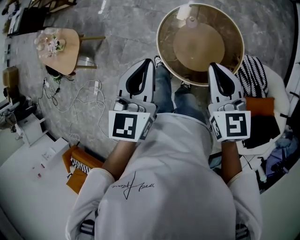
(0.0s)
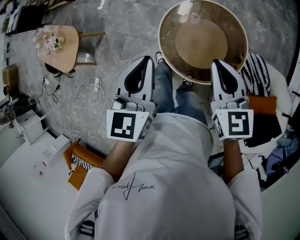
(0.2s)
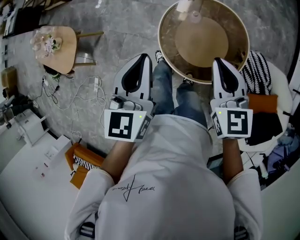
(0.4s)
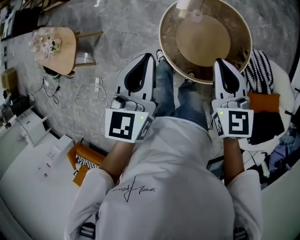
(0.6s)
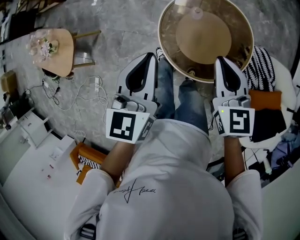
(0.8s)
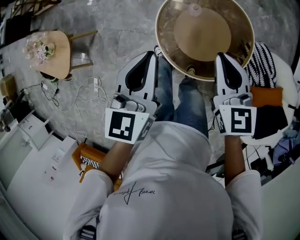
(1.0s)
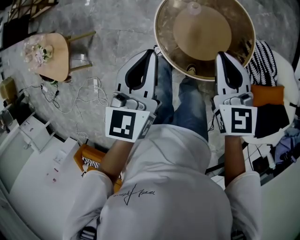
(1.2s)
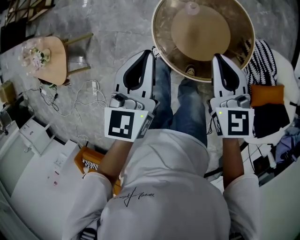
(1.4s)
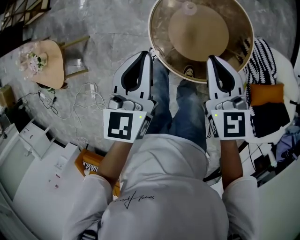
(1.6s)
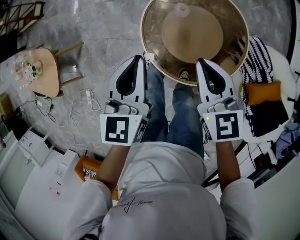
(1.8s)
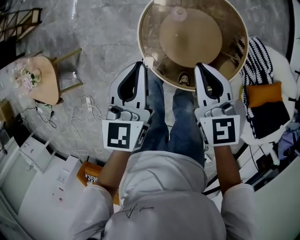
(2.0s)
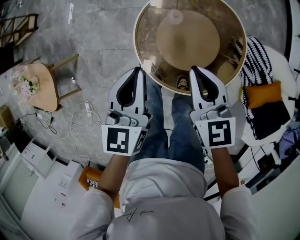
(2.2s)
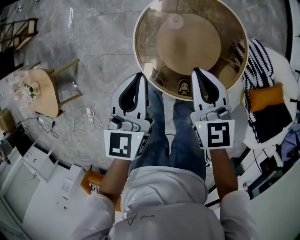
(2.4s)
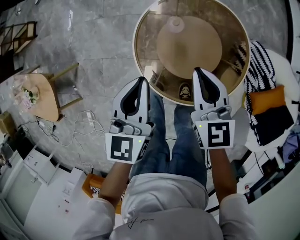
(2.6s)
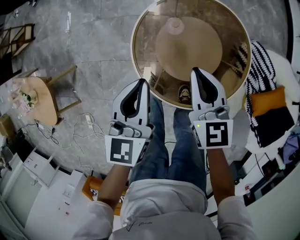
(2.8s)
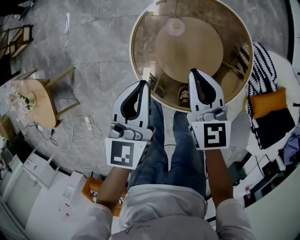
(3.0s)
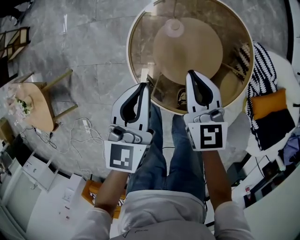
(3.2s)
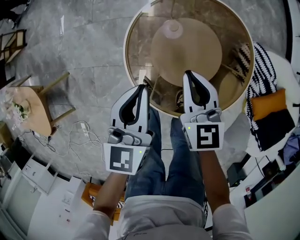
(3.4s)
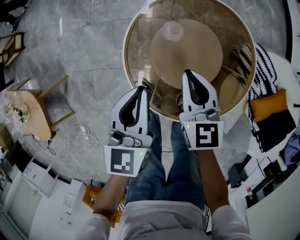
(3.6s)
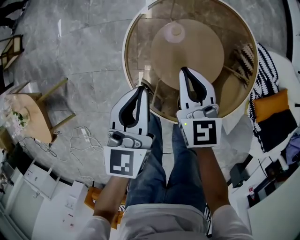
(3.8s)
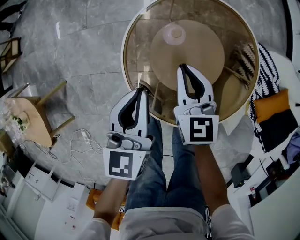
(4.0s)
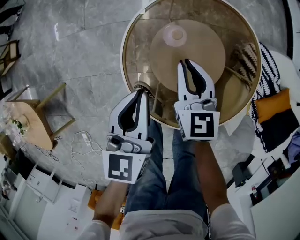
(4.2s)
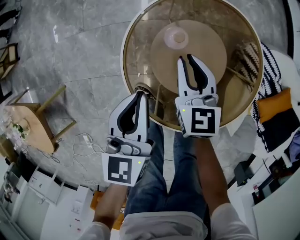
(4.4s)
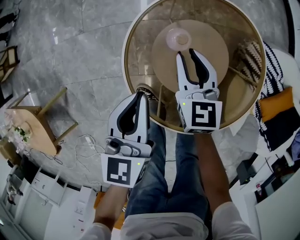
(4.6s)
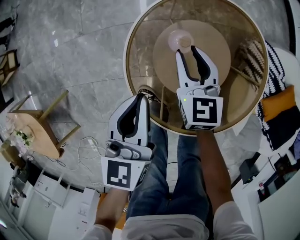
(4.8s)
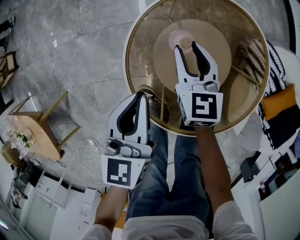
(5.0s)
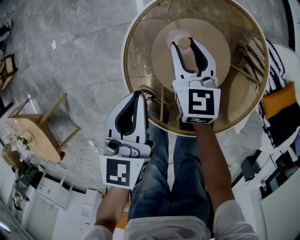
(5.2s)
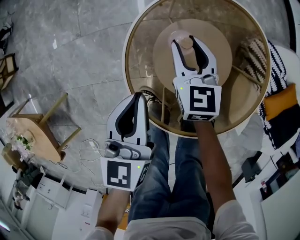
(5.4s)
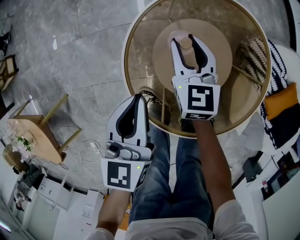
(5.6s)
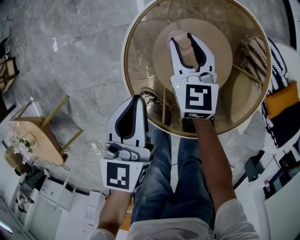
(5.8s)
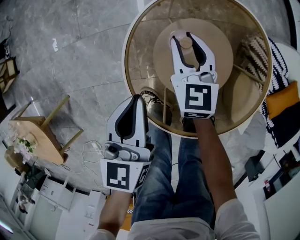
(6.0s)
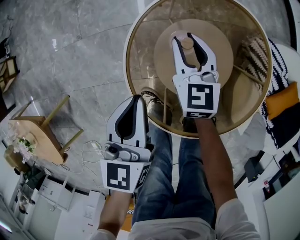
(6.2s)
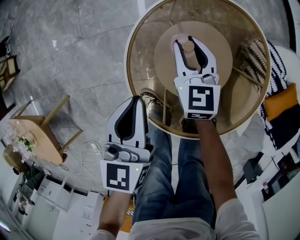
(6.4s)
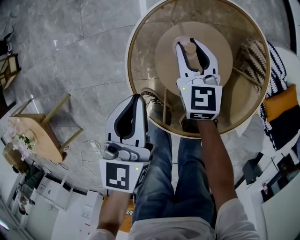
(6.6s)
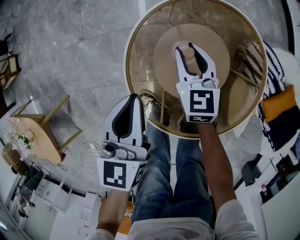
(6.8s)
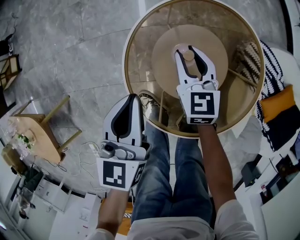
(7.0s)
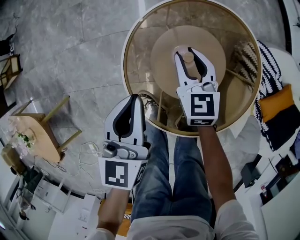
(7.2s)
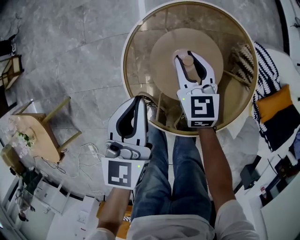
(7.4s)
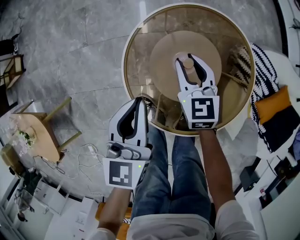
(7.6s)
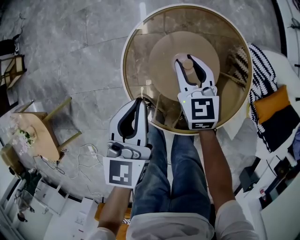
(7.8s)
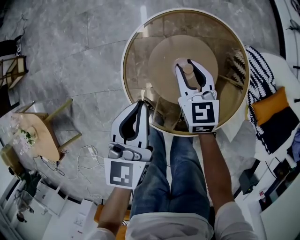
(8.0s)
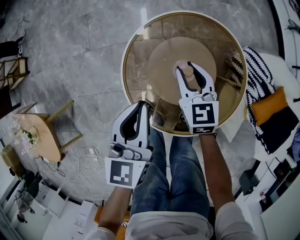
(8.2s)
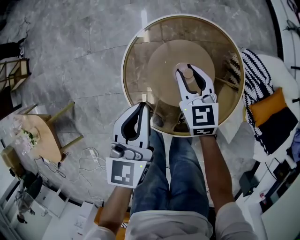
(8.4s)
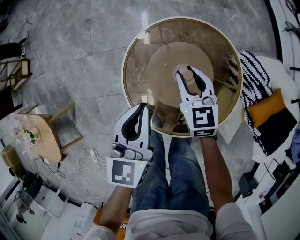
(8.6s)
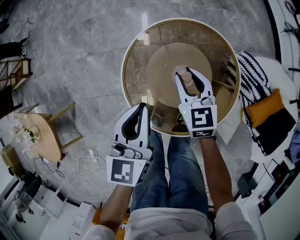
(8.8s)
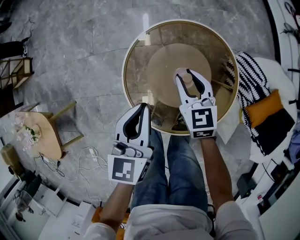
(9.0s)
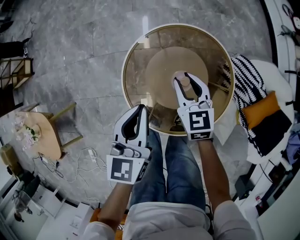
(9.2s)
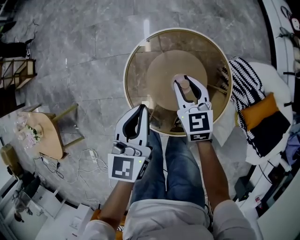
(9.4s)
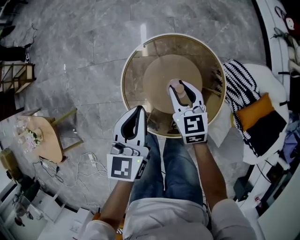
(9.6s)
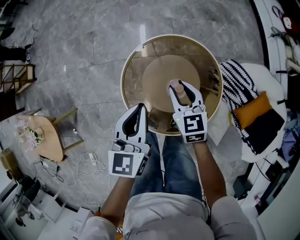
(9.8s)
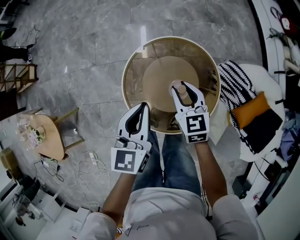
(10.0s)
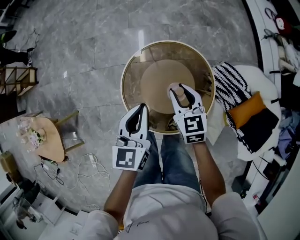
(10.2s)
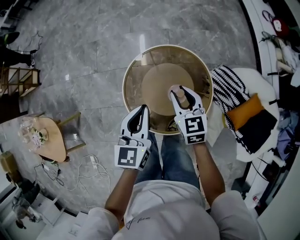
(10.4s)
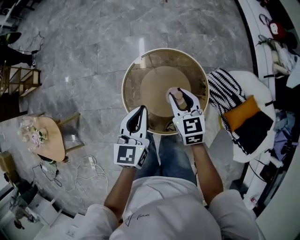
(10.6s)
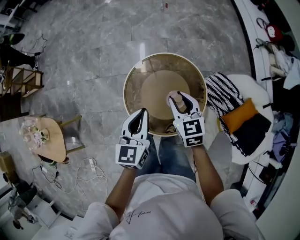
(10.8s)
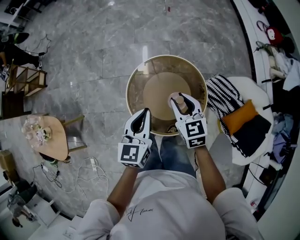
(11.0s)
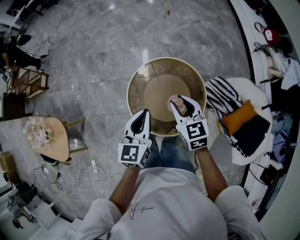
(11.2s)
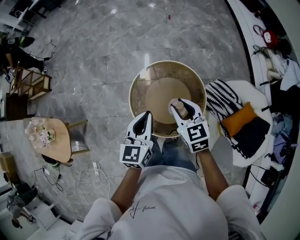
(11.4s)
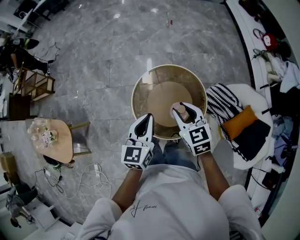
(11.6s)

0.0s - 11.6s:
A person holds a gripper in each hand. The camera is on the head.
0.0s - 1.4s: Both grippers move downward and forward, roughly 15 cm.
1.4s - 2.8s: The right gripper shifts about 15 cm downward and forward. The left gripper is displaced downward by roughly 15 cm.
2.8s - 4.4s: Both grippers travel together downward and forward, roughly 15 cm.
4.4s - 5.8s: The right gripper travels forward and downward by some 10 cm, and opens.
5.8s - 7.2s: There are only small adjustments of the grippers.
7.2s - 8.8s: Both grippers move upward and to the right, about 10 cm.
8.8s - 10.2s: Both grippers move upward, approximately 10 cm.
10.2s - 11.6s: The two grippers go some 15 cm upward and backward.

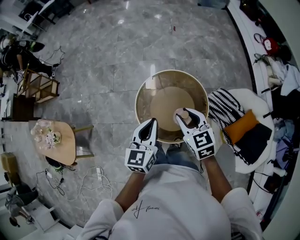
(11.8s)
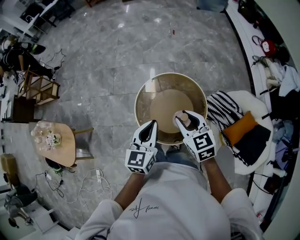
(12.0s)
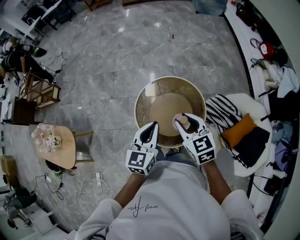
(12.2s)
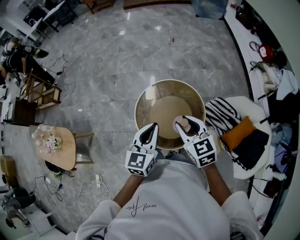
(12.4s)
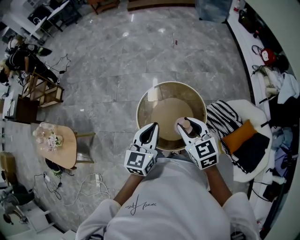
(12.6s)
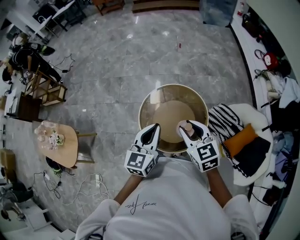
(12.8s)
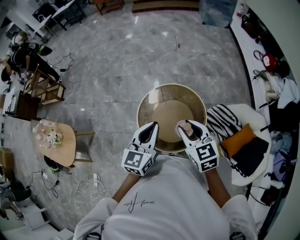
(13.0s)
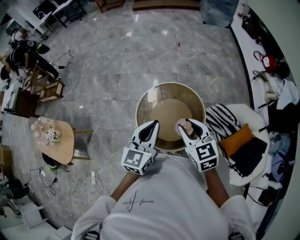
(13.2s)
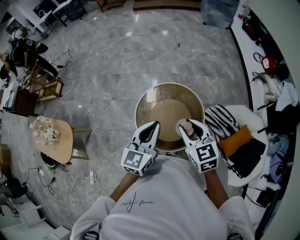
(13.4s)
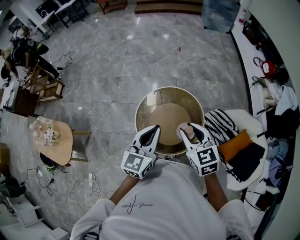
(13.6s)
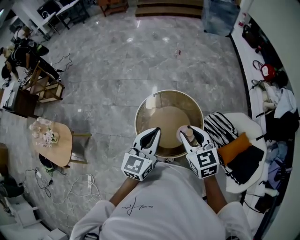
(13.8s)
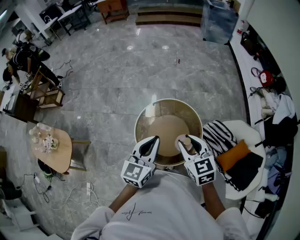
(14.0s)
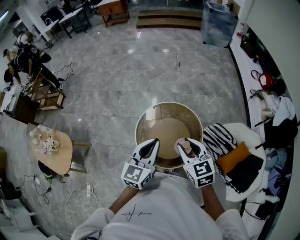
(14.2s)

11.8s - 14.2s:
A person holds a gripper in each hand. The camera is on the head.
11.8s - 13.0s: The two grippers go some 5 cm upward.
13.0s - 14.2s: The grippers make only small movements.

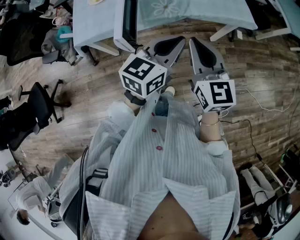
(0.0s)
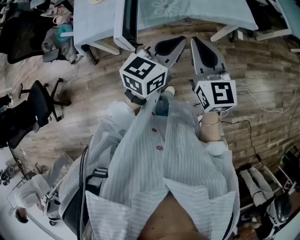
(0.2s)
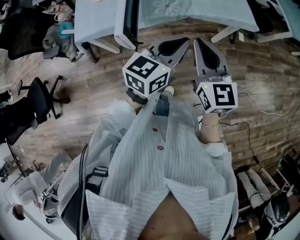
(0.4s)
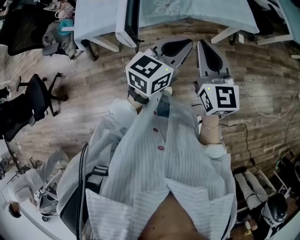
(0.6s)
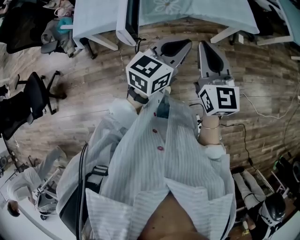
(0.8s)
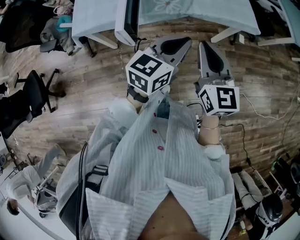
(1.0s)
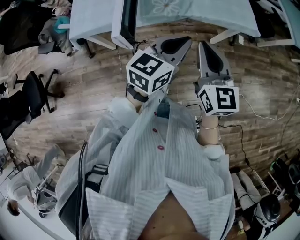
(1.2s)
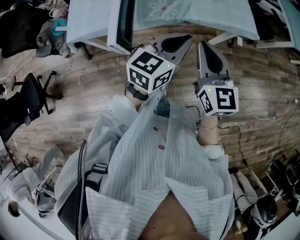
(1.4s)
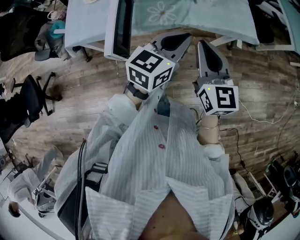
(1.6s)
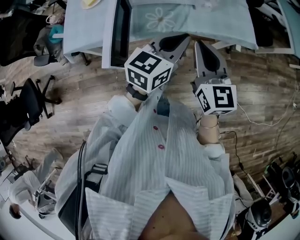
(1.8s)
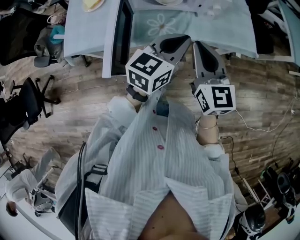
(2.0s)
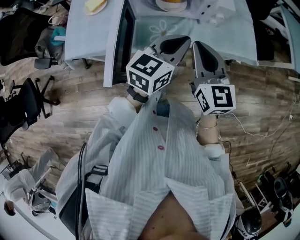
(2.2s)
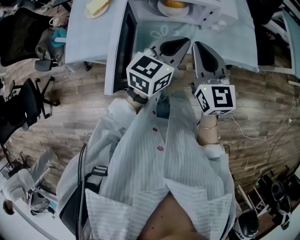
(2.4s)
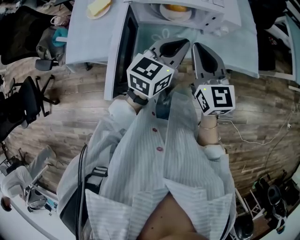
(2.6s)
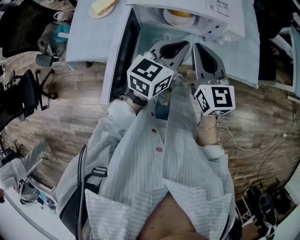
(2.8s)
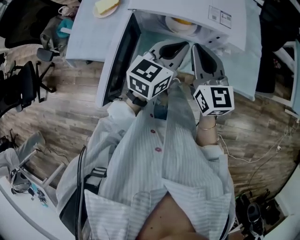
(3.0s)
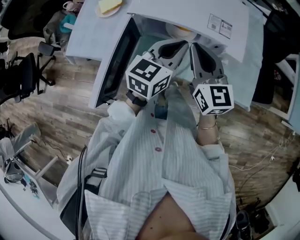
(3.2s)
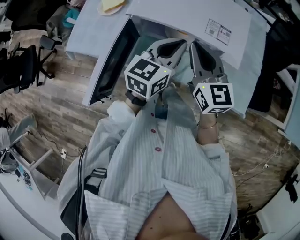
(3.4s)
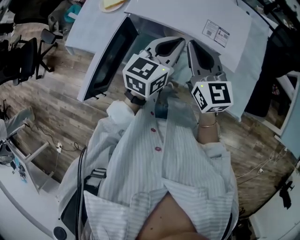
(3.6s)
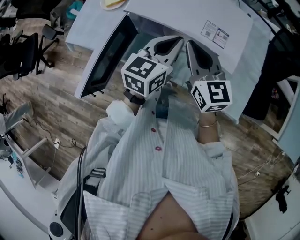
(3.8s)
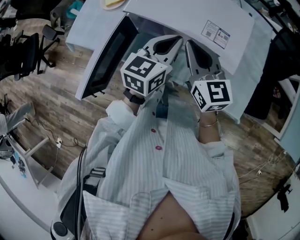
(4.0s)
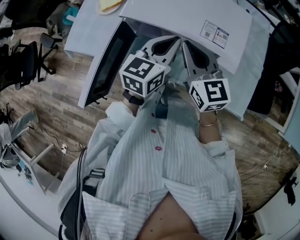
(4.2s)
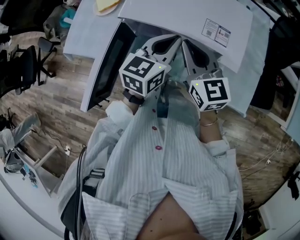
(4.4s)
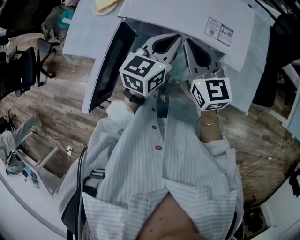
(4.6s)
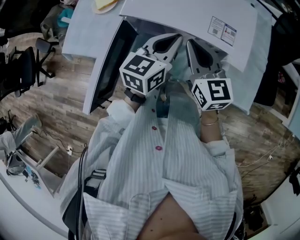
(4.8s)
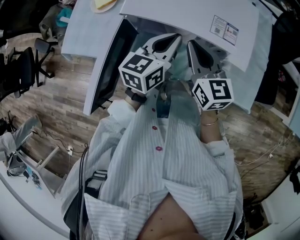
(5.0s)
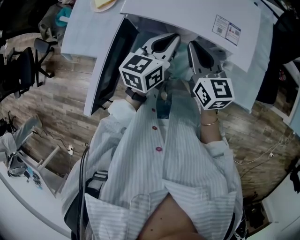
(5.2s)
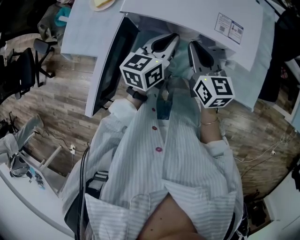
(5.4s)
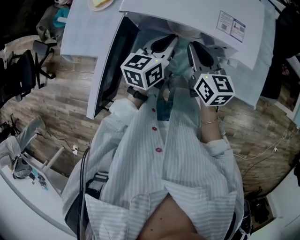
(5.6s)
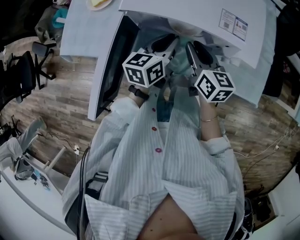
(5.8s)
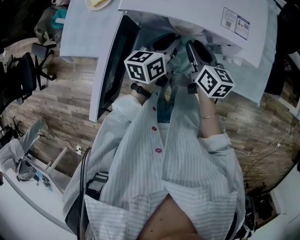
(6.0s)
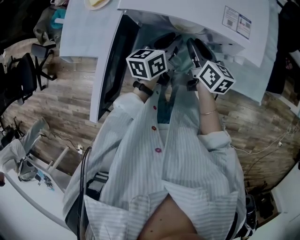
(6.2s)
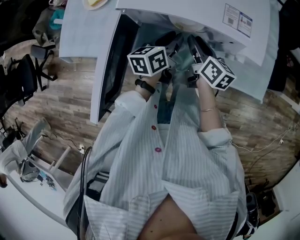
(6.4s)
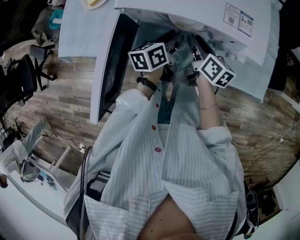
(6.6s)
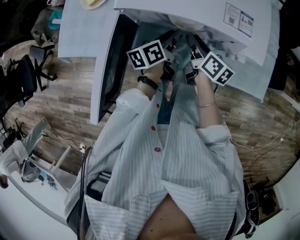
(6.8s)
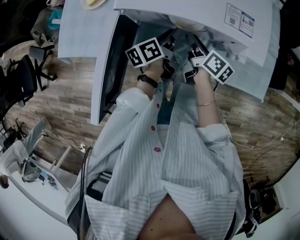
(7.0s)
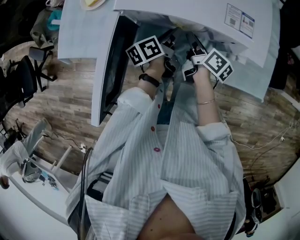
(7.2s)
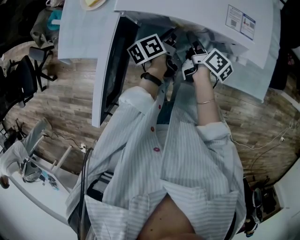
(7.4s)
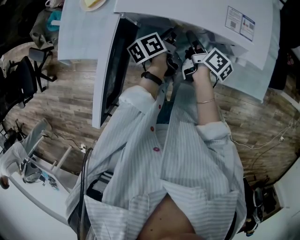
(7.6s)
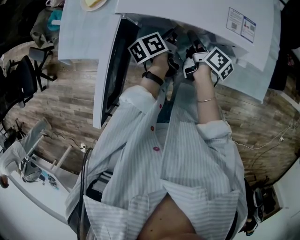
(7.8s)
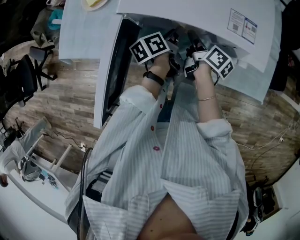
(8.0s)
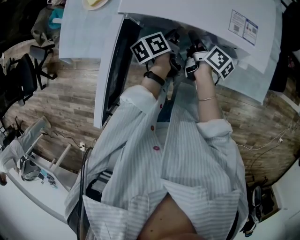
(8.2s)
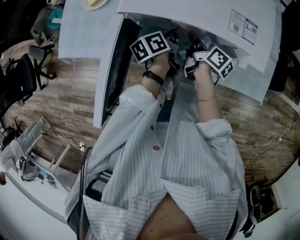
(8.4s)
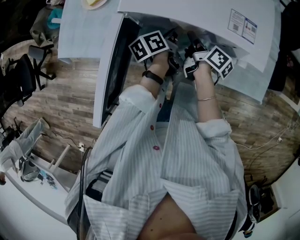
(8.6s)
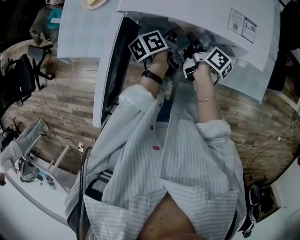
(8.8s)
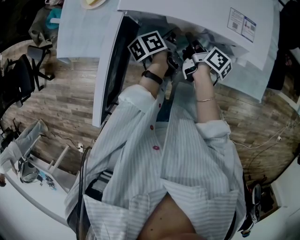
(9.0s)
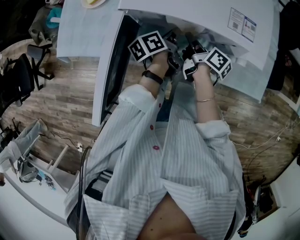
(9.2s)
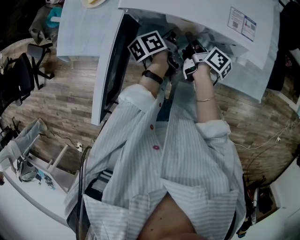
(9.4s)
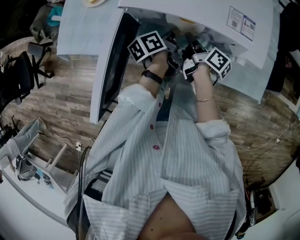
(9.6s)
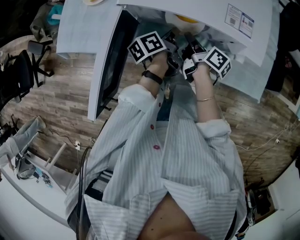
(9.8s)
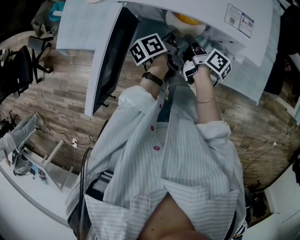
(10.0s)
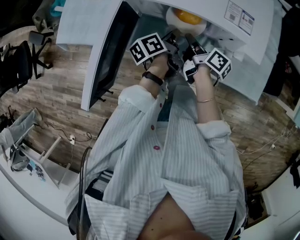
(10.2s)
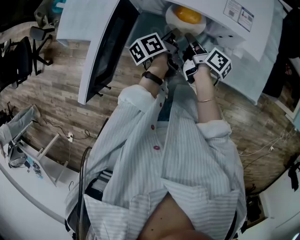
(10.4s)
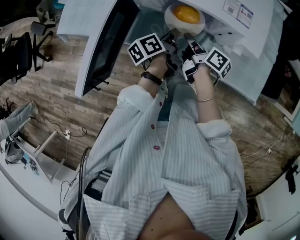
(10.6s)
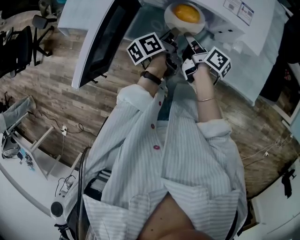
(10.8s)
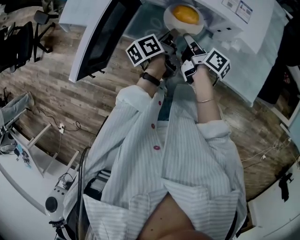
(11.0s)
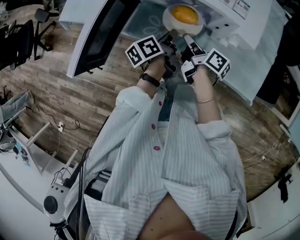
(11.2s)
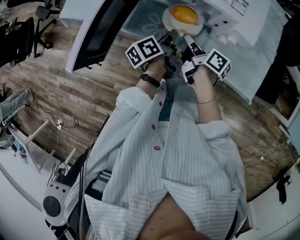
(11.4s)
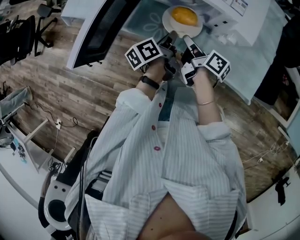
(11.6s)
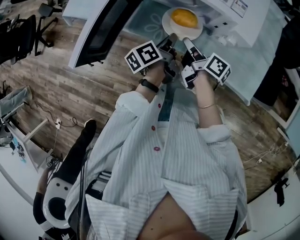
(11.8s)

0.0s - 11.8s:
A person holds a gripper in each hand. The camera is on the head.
0.0s - 1.4s: The grippers both shift forward by approximately 5 cm.
1.4s - 3.0s: The grippers both shift forward by approximately 25 cm.
3.0s - 4.4s: Both grippers move forward, roughly 10 cm.
4.4s - 6.0s: Both grippers travel together downward, roughly 15 cm. The left gripper changes its angle by some 20 degrees. Meanwhile the right gripper swivels roughly 30 degrees, and opens up.
6.0s - 7.4s: The two grippers go roughly 10 cm downward. The right gripper swivels some 40 degrees. Meanwhile the left gripper changes its angle by approximately 30 degrees.
7.4s - 8.8s: The right gripper closes up.
8.8s - 10.4s: The left gripper closes its fingers.
10.4s - 11.8s: Both grippers move backward, about 10 cm.
